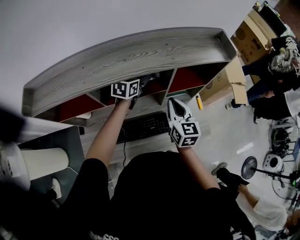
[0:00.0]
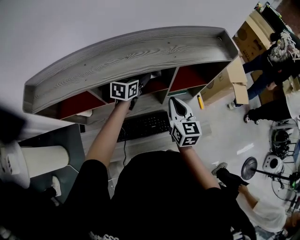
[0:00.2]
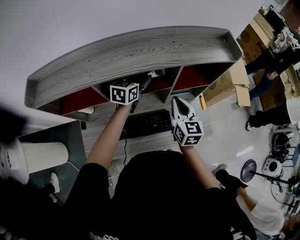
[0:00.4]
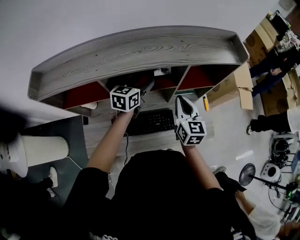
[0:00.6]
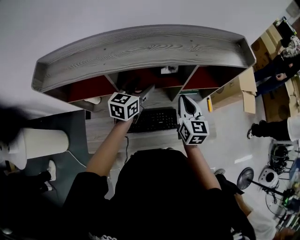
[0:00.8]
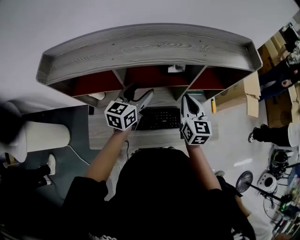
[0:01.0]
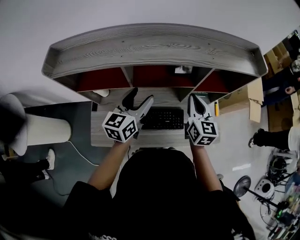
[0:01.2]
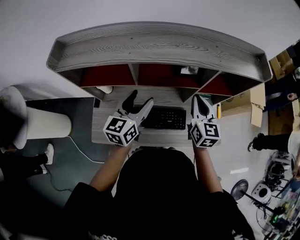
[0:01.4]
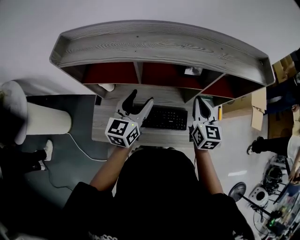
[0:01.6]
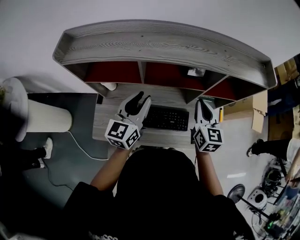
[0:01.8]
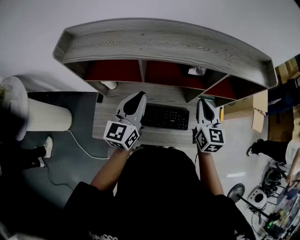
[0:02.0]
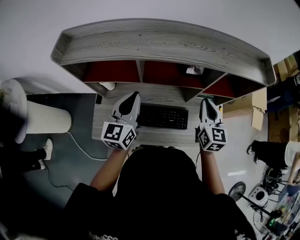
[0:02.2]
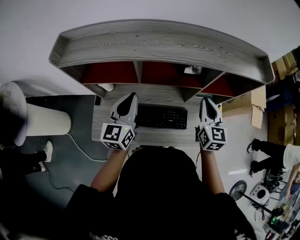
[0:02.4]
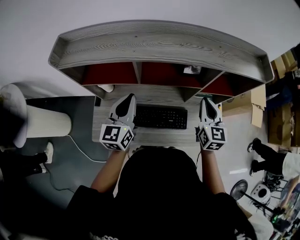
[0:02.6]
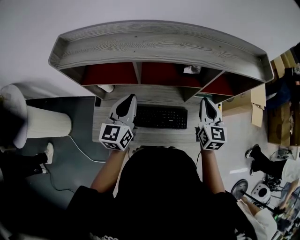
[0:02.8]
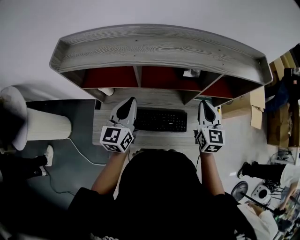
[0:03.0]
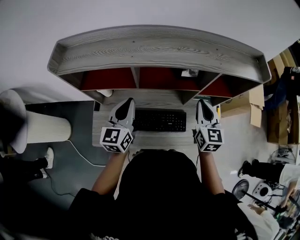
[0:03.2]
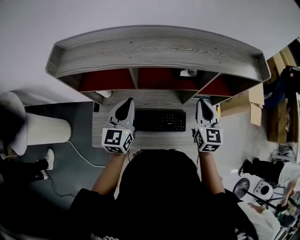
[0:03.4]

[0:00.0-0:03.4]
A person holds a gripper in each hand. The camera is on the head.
0:00.0 to 0:01.6: The left gripper heads backward and to the left, covering roughly 25 cm, and swivels roughly 30 degrees; the right gripper changes place by roughly 5 cm.
0:01.6 to 0:03.4: The left gripper closes.

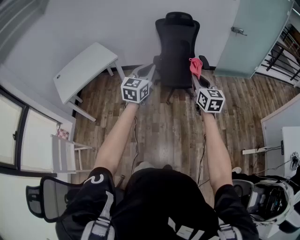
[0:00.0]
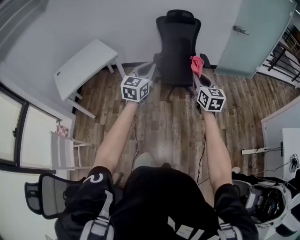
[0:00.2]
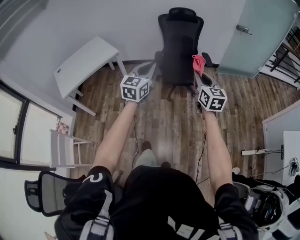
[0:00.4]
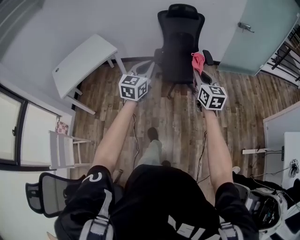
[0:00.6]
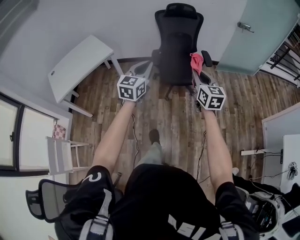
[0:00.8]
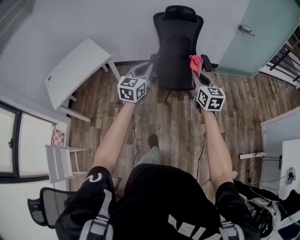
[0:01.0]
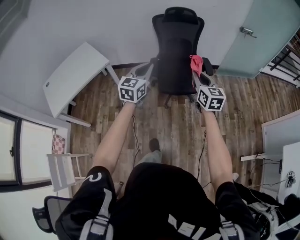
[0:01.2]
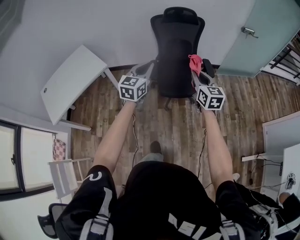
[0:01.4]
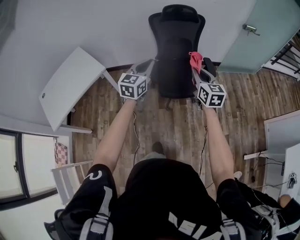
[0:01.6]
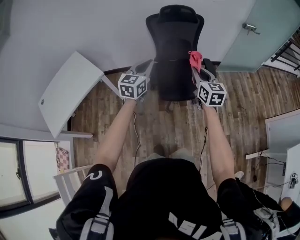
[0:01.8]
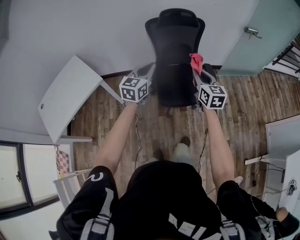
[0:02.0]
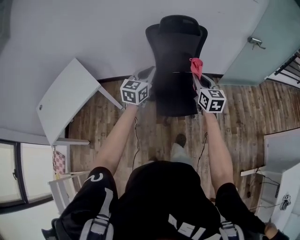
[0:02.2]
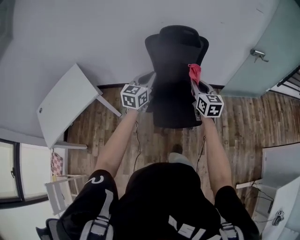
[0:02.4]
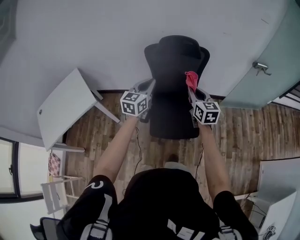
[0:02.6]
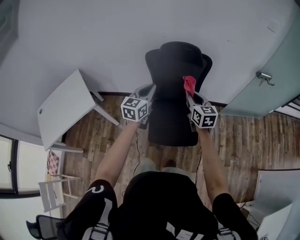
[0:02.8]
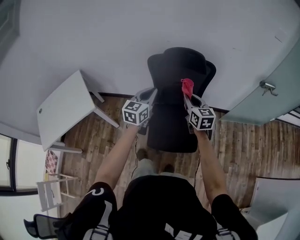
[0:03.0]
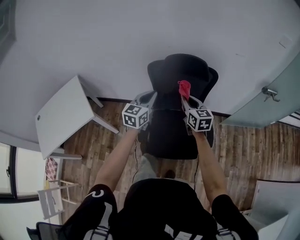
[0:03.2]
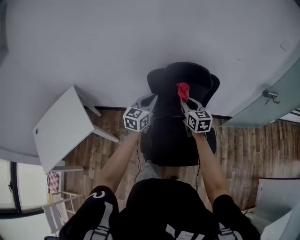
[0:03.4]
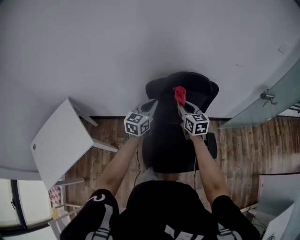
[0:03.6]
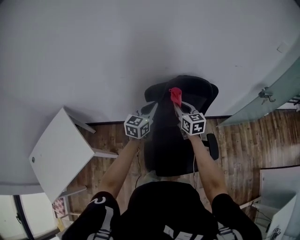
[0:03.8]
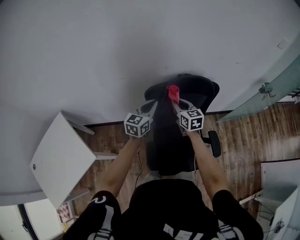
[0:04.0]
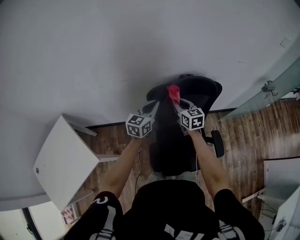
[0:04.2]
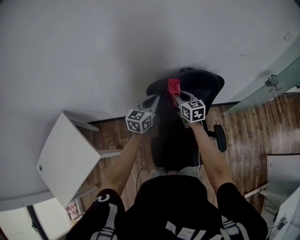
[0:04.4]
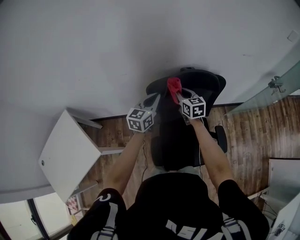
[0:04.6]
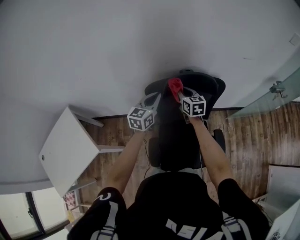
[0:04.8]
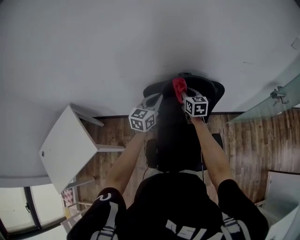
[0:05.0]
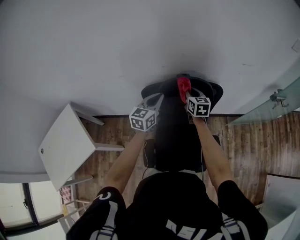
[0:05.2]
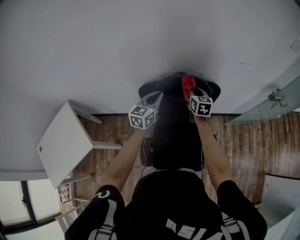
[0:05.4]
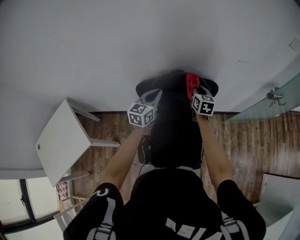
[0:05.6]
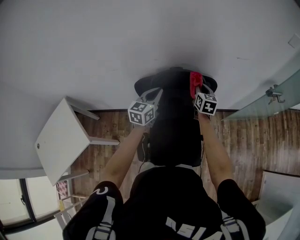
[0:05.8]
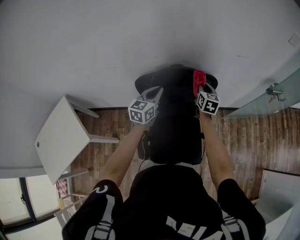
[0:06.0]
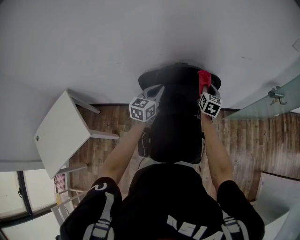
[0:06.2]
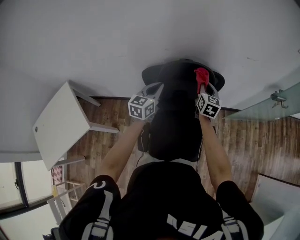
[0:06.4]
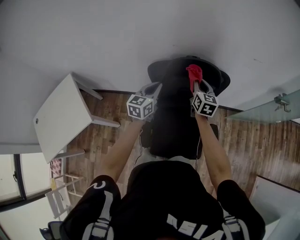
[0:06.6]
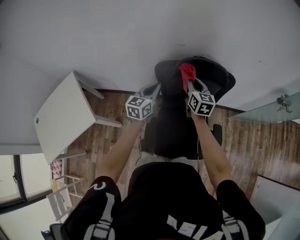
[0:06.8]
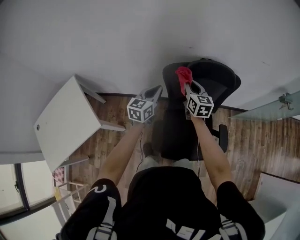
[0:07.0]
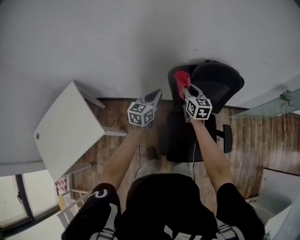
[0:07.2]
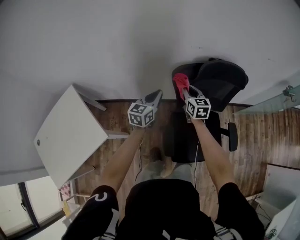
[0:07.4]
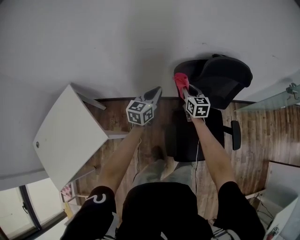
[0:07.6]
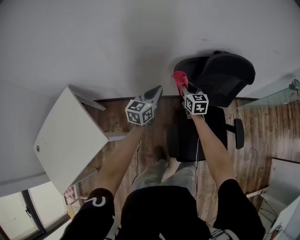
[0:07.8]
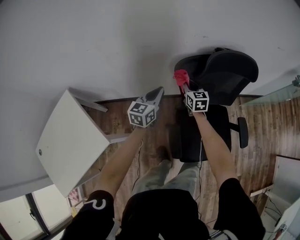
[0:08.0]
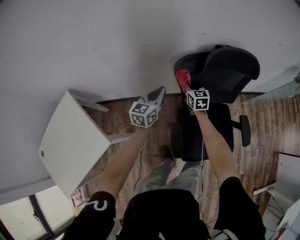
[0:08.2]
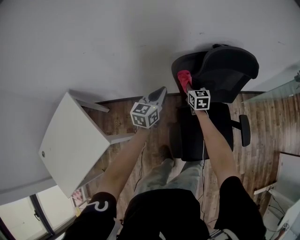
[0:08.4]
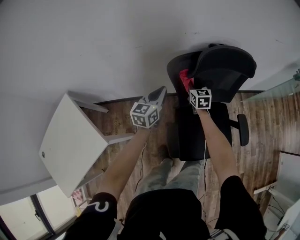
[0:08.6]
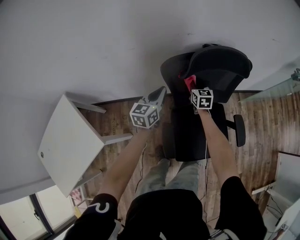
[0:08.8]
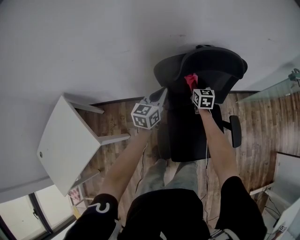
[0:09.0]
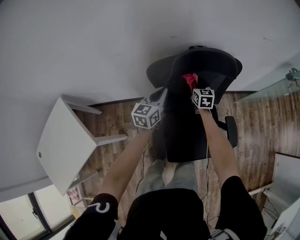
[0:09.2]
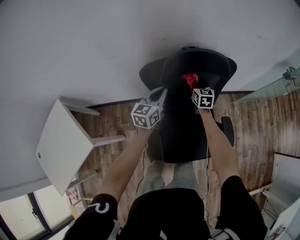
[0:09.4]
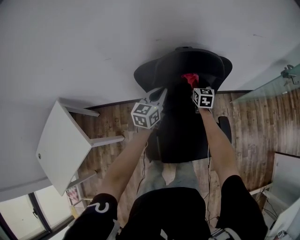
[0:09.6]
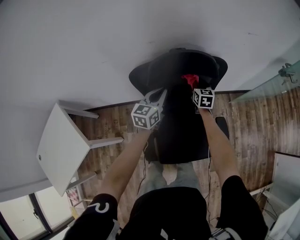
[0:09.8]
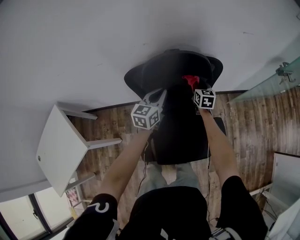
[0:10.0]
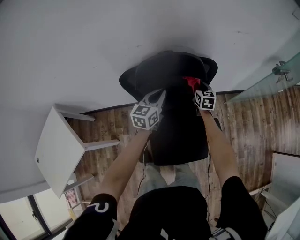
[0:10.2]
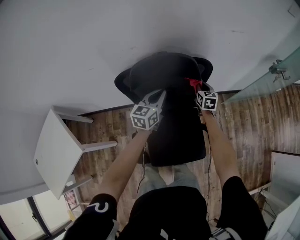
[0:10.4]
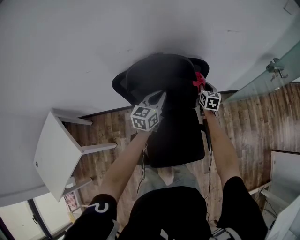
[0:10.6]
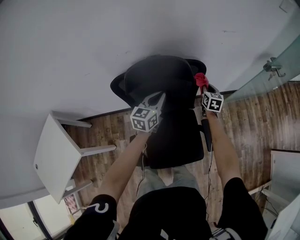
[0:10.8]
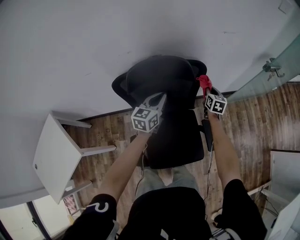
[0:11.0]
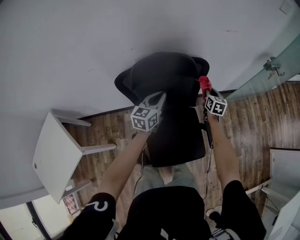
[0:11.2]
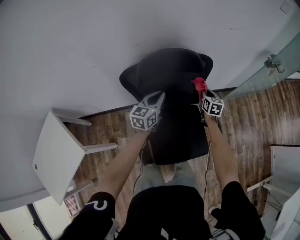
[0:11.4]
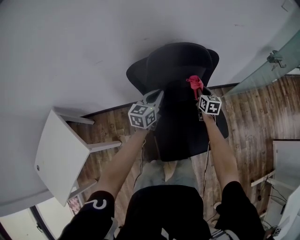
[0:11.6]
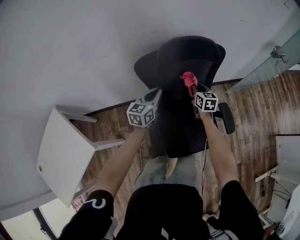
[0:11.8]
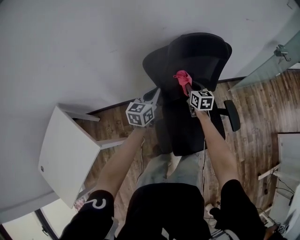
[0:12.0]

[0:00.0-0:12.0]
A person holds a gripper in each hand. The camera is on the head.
0:00.0 to 0:01.6: Both grippers travel together forward, about 35 cm.
0:01.6 to 0:03.0: The grippers both shift forward by some 35 cm.
0:03.0 to 0:04.4: The left gripper moves forward, some 25 cm, while the right gripper travels forward and to the left by roughly 30 cm.
0:04.4 to 0:06.0: The right gripper heads to the right, covering roughly 25 cm. The left gripper goes roughly 10 cm to the right.
0:06.0 to 0:07.6: The left gripper shifts roughly 25 cm to the left and downward; the right gripper travels to the left by about 35 cm.
0:07.6 to 0:09.0: The left gripper heads to the right, covering roughly 10 cm, while the right gripper is displaced to the right, forward and downward by about 20 cm.
0:09.0 to 0:10.4: Both grippers travel together to the right, about 20 cm.
0:10.4 to 0:12.0: Both grippers travel together to the left and backward, about 25 cm.

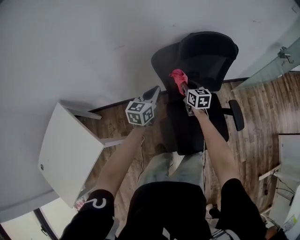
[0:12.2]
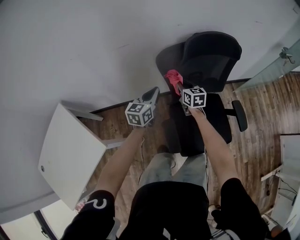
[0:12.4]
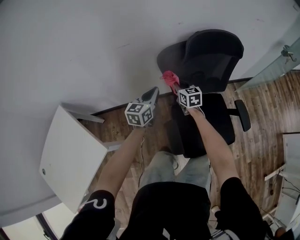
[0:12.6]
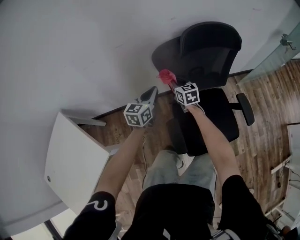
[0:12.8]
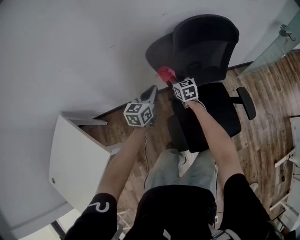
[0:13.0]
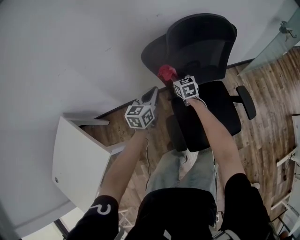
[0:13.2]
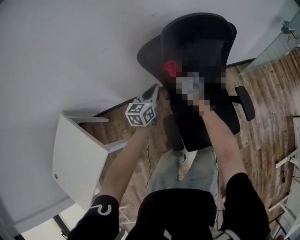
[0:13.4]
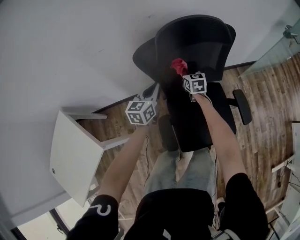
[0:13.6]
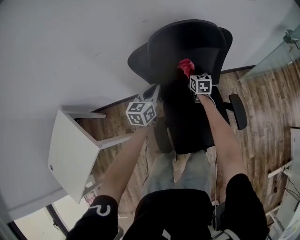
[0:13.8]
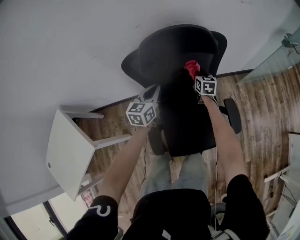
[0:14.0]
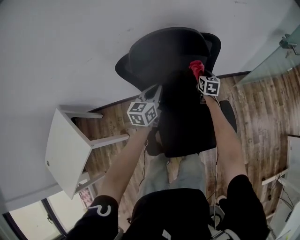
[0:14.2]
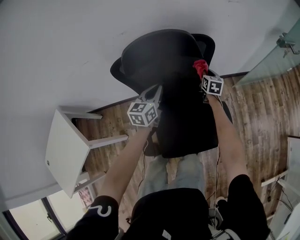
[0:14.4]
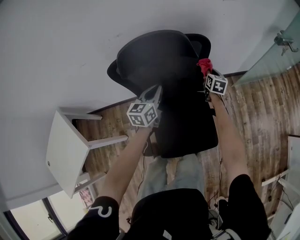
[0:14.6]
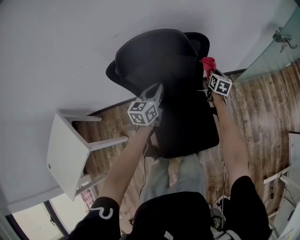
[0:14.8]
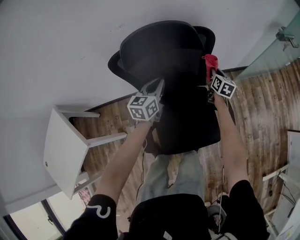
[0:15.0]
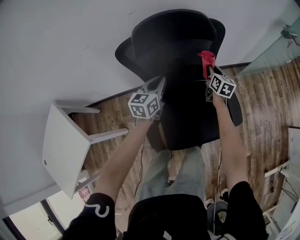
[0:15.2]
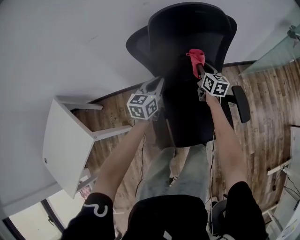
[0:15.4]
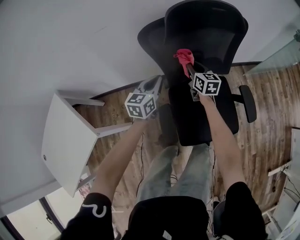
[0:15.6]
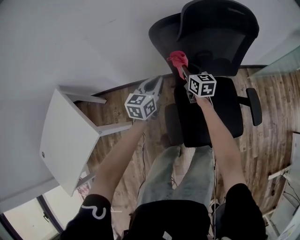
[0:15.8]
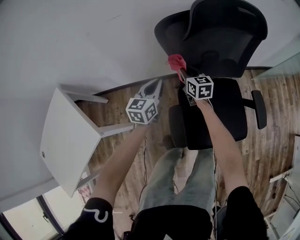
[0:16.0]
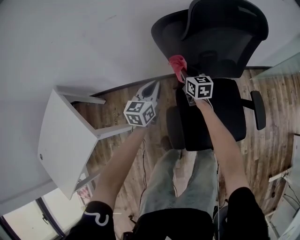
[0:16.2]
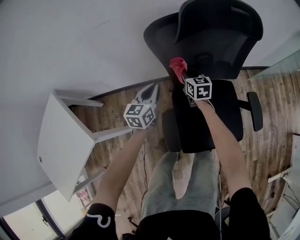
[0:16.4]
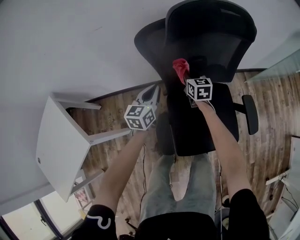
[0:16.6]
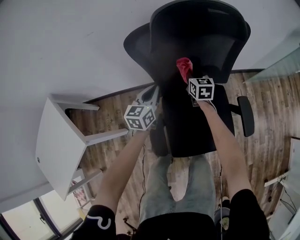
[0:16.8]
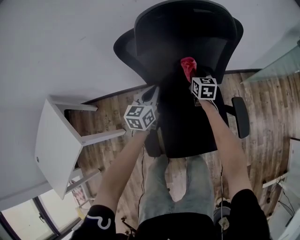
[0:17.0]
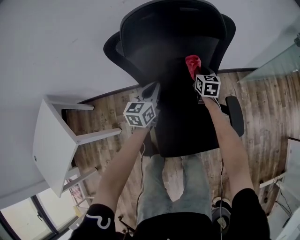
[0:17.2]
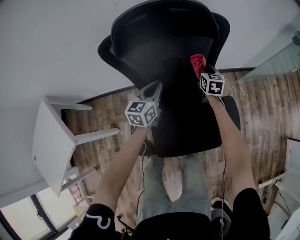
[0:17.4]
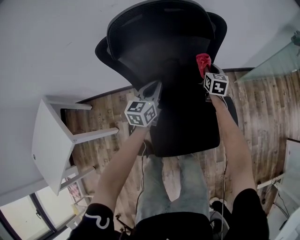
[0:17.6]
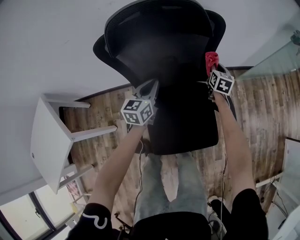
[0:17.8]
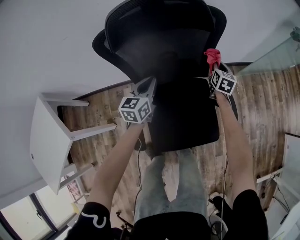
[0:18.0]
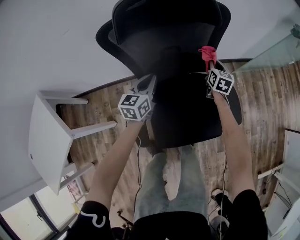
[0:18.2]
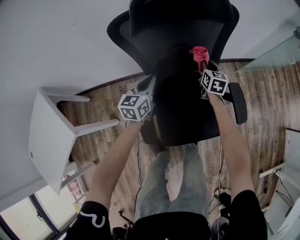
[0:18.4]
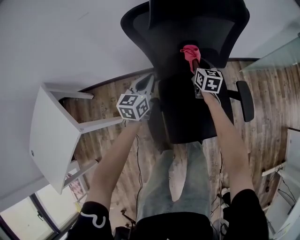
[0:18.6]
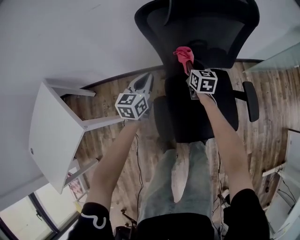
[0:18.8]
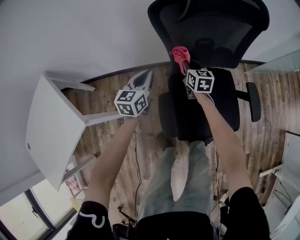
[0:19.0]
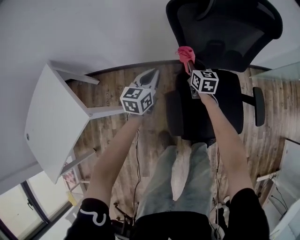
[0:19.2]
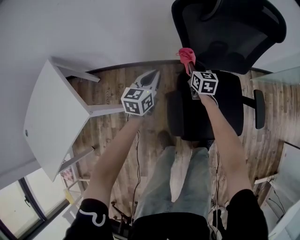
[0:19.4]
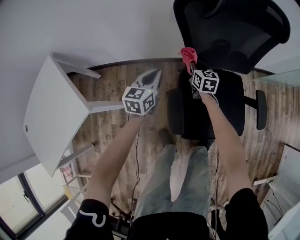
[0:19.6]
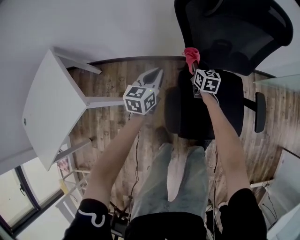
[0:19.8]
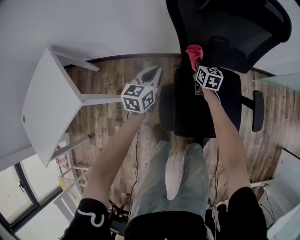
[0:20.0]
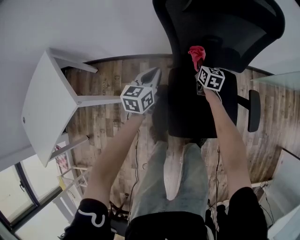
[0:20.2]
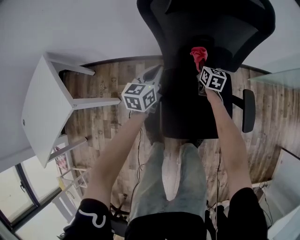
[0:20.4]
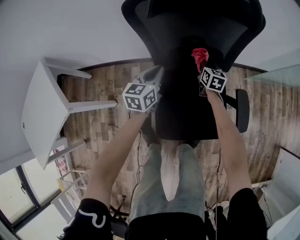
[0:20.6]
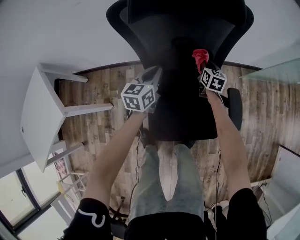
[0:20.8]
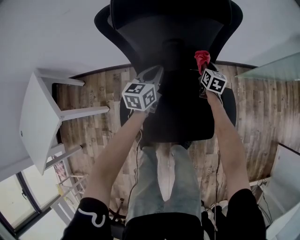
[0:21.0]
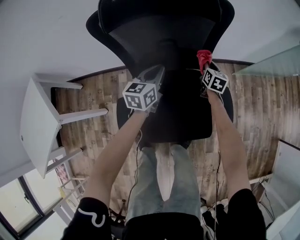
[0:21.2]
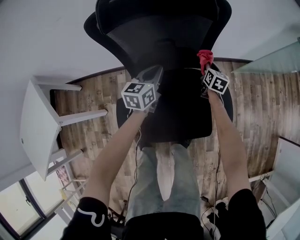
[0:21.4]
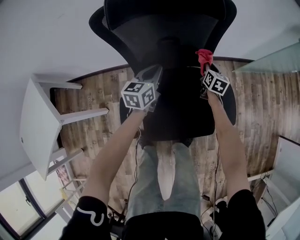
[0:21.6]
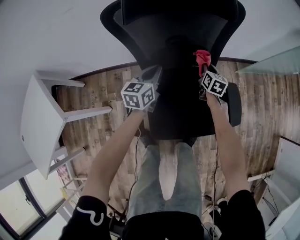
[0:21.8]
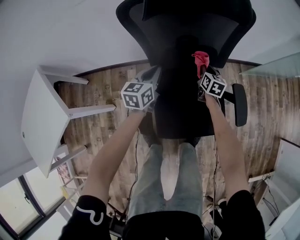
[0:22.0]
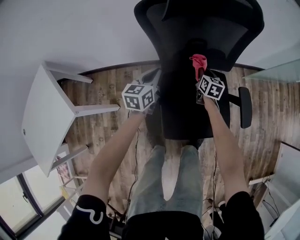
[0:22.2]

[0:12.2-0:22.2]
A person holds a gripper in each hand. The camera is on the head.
0:12.2 to 0:13.6: The right gripper is displaced downward, forward and to the right by some 10 cm. Meanwhile the left gripper travels to the right by some 5 cm.
0:13.6 to 0:15.0: The right gripper moves to the right, approximately 30 cm, and swivels roughly 20 degrees, while the left gripper shifts some 15 cm to the right.
0:15.0 to 0:16.4: The left gripper is displaced to the left and downward by about 25 cm. The right gripper moves to the left, about 40 cm, and rotates some 30 degrees.
0:16.4 to 0:18.0: The right gripper goes roughly 35 cm to the right, and changes its angle by some 30 degrees. Meanwhile the left gripper goes some 20 cm to the right.
0:18.0 to 0:19.4: The left gripper heads to the left and backward, covering some 25 cm, while the right gripper moves to the left, roughly 40 cm, and rotates about 30 degrees.
0:19.4 to 0:20.8: Both grippers travel together to the right, some 25 cm.
0:20.8 to 0:22.2: The right gripper moves to the left and backward, about 10 cm; the left gripper shifts some 10 cm to the left.
